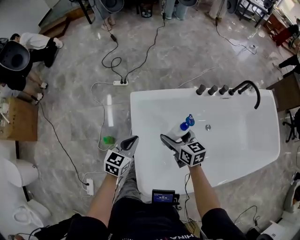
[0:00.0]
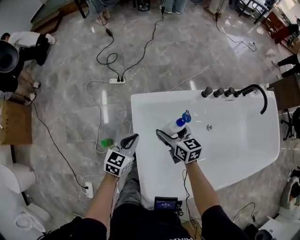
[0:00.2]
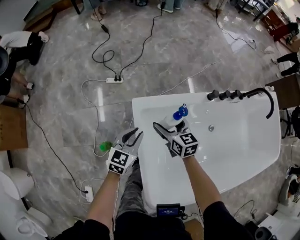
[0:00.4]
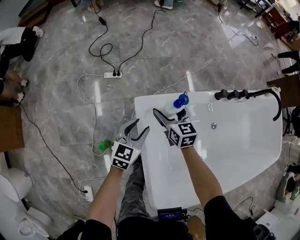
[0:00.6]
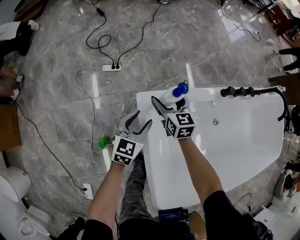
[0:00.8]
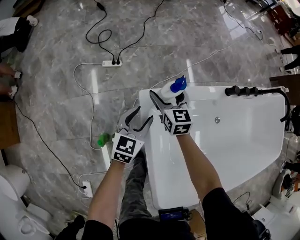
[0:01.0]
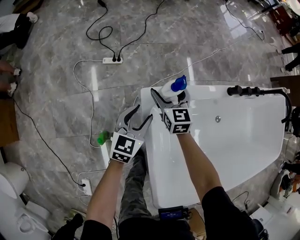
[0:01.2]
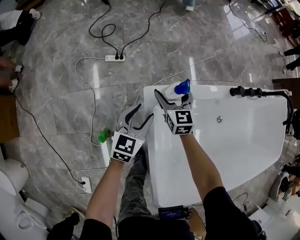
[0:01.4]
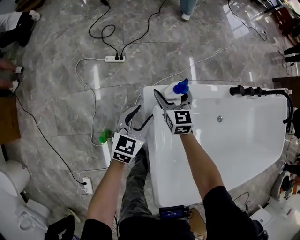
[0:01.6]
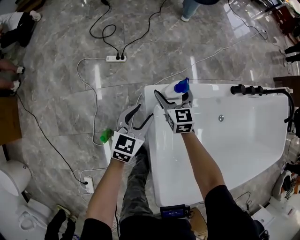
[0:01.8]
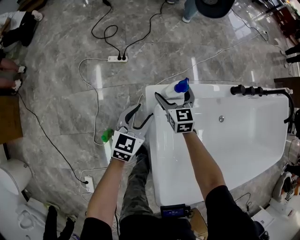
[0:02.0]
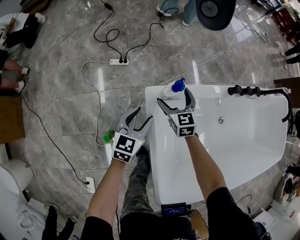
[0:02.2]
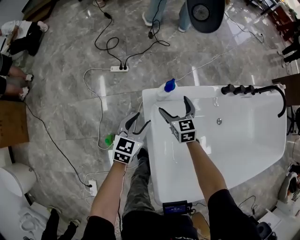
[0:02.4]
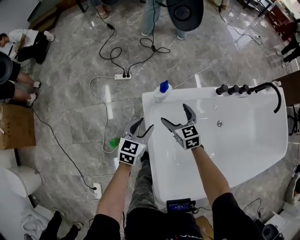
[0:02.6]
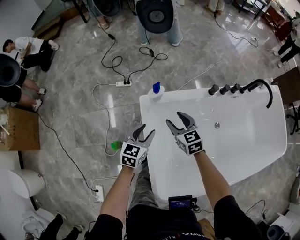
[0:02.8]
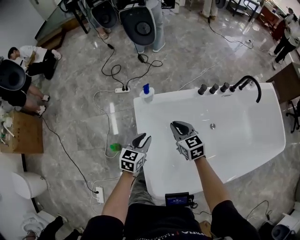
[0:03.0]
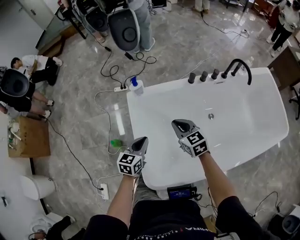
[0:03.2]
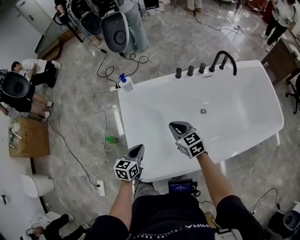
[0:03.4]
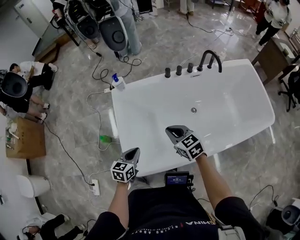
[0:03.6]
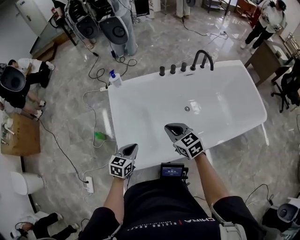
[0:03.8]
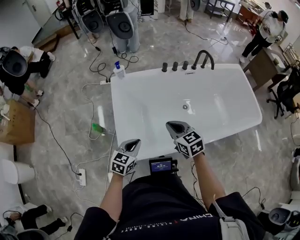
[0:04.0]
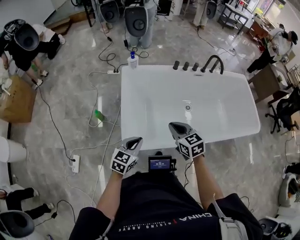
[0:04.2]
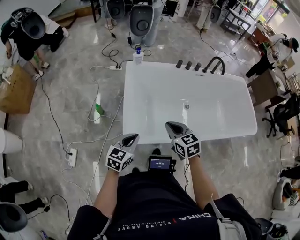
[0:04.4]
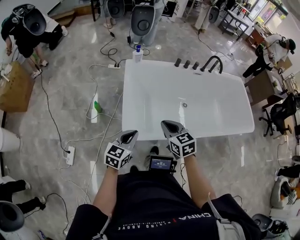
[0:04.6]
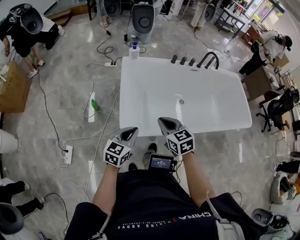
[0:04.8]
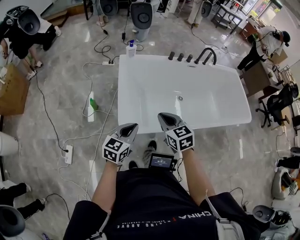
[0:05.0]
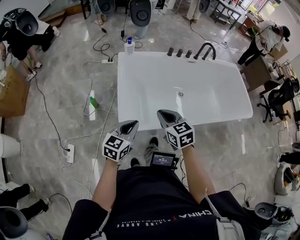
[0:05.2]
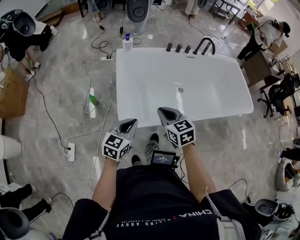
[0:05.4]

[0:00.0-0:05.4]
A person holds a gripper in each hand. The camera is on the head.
0:00.0 to 0:01.4: The two grippers go approximately 35 cm forward, downward and to the left. The right gripper changes its angle by approximately 30 degrees, while the left gripper opens up.
0:01.4 to 0:02.8: Both grippers travel together backward, upward and to the right, some 20 cm. The right gripper closes.
0:02.8 to 0:04.0: Both grippers are carried backward and to the right, roughly 50 cm. The right gripper is displaced upward by about 15 cm, and closes its fingers; the left gripper closes up.
0:04.0 to 0:05.4: The grippers both shift backward and to the left by roughly 15 cm.

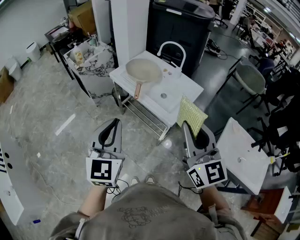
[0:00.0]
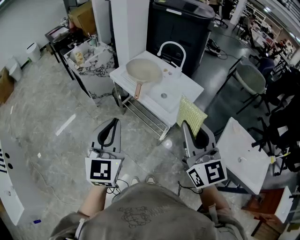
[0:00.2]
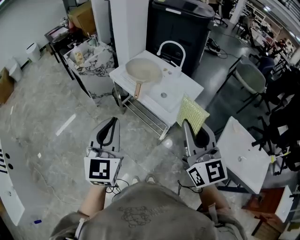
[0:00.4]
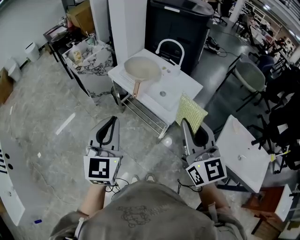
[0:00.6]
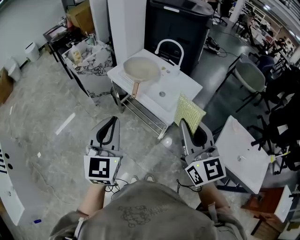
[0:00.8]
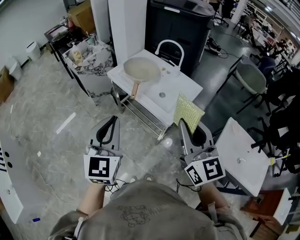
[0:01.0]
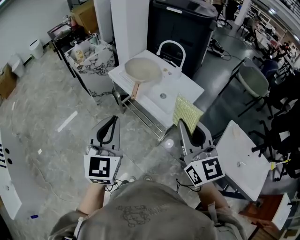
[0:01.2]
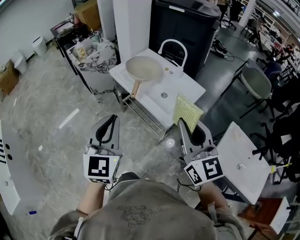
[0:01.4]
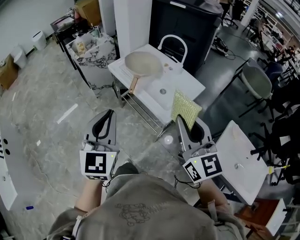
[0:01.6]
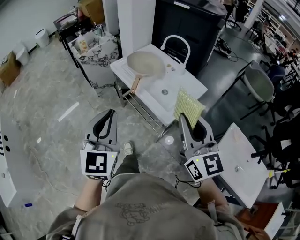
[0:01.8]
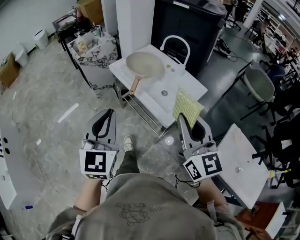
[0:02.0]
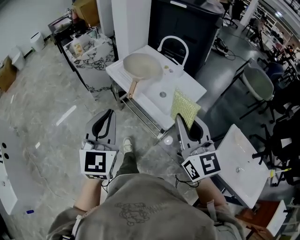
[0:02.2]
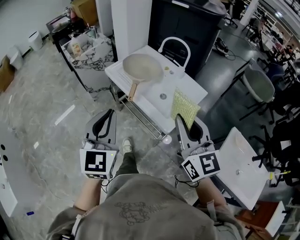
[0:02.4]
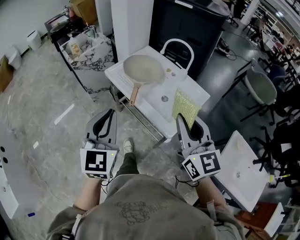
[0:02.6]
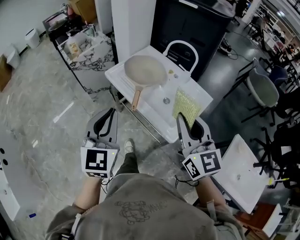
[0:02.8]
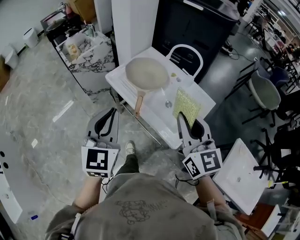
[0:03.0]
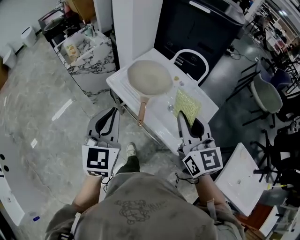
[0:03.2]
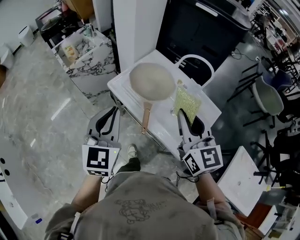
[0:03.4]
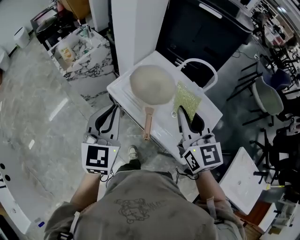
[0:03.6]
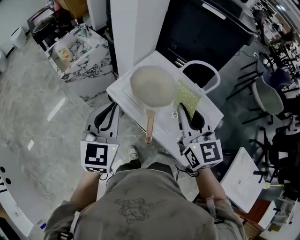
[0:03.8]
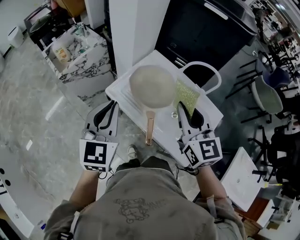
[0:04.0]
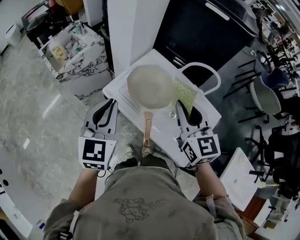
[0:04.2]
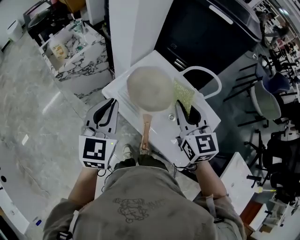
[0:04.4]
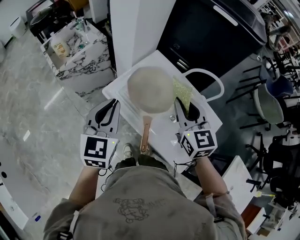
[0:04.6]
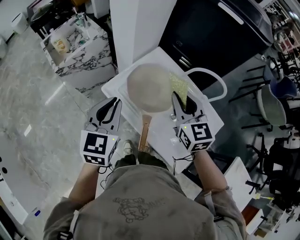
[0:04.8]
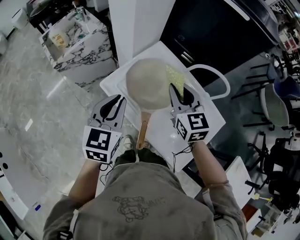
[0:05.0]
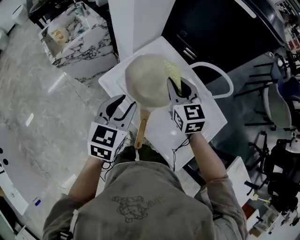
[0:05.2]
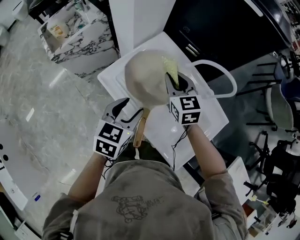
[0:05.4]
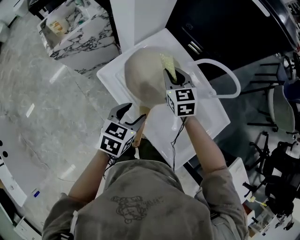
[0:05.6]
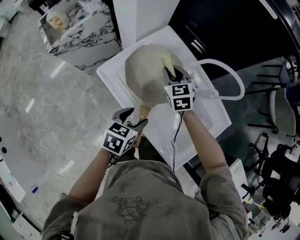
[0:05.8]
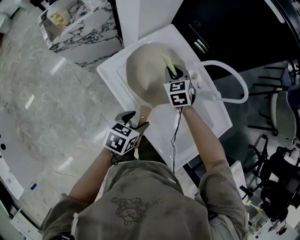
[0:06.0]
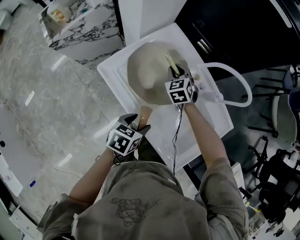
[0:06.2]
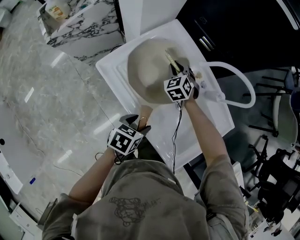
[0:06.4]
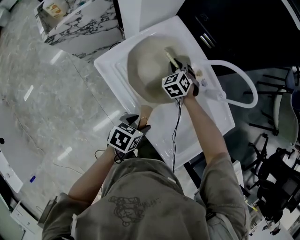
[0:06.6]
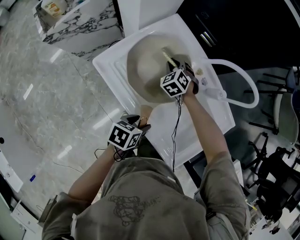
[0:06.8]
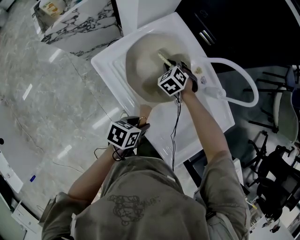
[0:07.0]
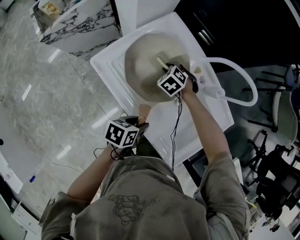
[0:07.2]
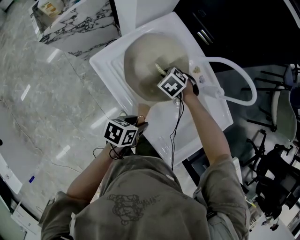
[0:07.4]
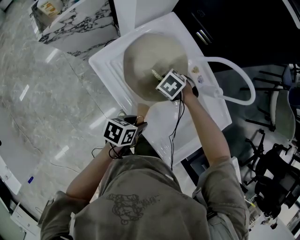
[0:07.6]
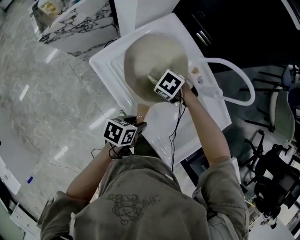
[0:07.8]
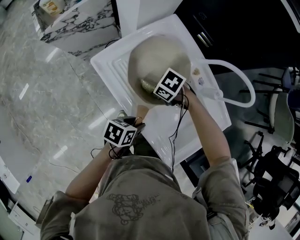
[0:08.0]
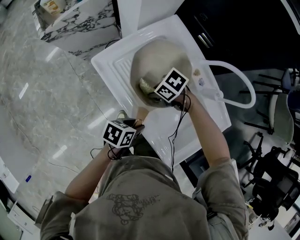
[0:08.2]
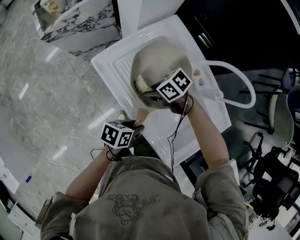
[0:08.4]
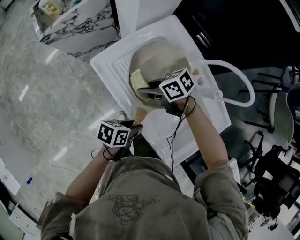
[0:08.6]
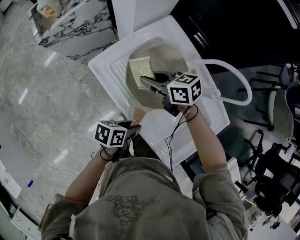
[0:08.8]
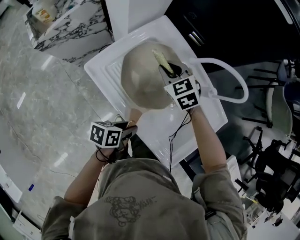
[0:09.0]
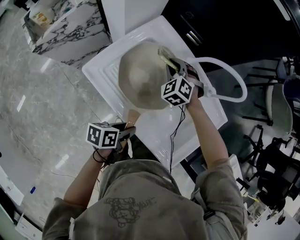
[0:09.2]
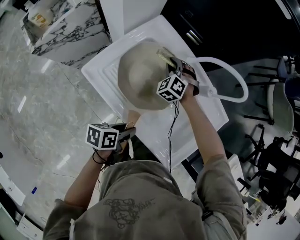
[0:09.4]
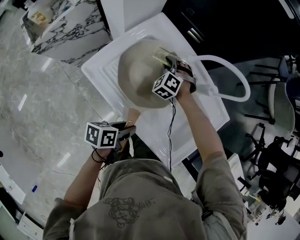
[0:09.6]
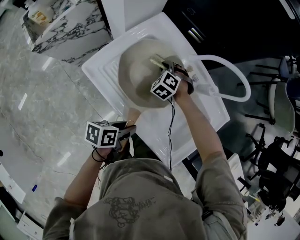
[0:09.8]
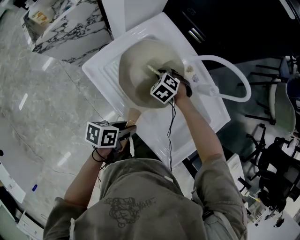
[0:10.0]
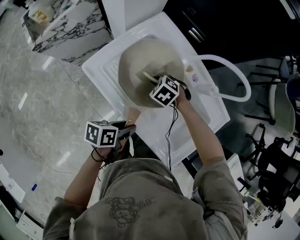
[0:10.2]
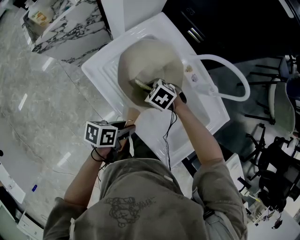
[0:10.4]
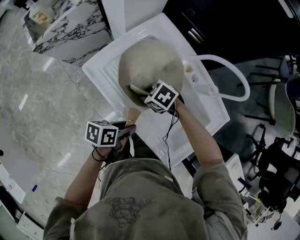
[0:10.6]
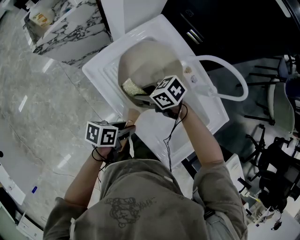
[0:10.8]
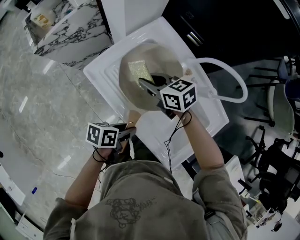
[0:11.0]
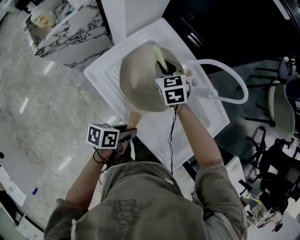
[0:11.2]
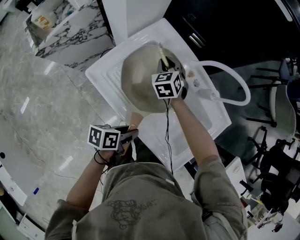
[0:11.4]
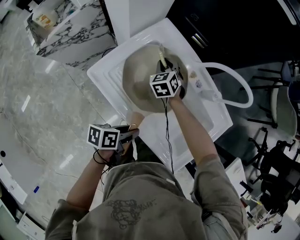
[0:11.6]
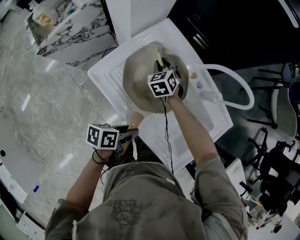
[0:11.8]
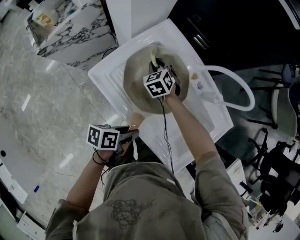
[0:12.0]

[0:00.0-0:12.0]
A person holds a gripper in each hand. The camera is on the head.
0:00.0 to 0:01.6: The left gripper shifts by roughly 5 cm. The right gripper moves about 5 cm.
0:01.6 to 0:03.0: Both grippers move forward, roughly 20 cm.
0:03.0 to 0:04.4: The two grippers go about 25 cm forward.
0:04.4 to 0:06.0: The left gripper travels downward and to the right by some 30 cm, tilts its fingers about 30 degrees downward, and opens; the right gripper goes some 35 cm downward and forward, and swivels some 30 degrees.
0:06.0 to 0:07.6: The left gripper travels downward by approximately 5 cm. Meanwhile the right gripper moves downward, about 10 cm, and points its fingers about 40 degrees further downward.
0:07.6 to 0:09.0: The right gripper is displaced upward by roughly 15 cm, and angles its fingers upward, by about 40 degrees.
0:09.0 to 0:10.4: The right gripper is displaced downward by approximately 10 cm, and turns by some 40 degrees.
0:10.4 to 0:12.0: The right gripper moves about 10 cm upward and comes back, and changes its angle by approximately 40 degrees.

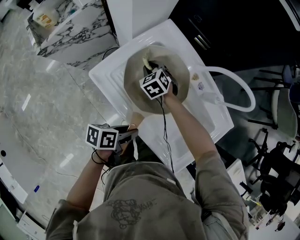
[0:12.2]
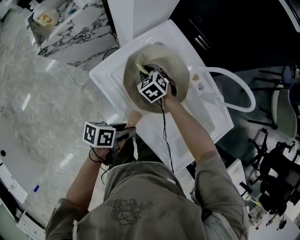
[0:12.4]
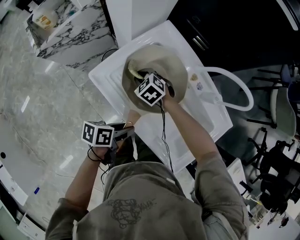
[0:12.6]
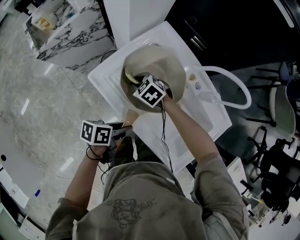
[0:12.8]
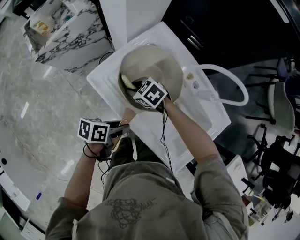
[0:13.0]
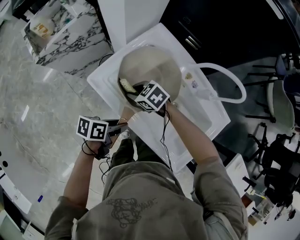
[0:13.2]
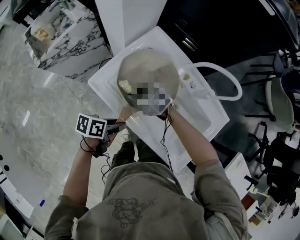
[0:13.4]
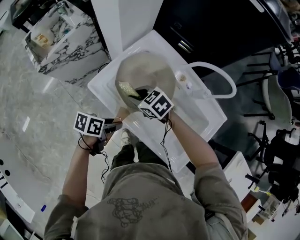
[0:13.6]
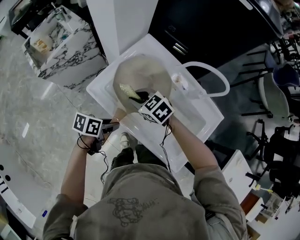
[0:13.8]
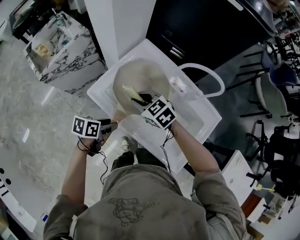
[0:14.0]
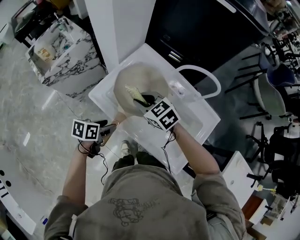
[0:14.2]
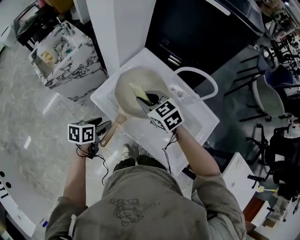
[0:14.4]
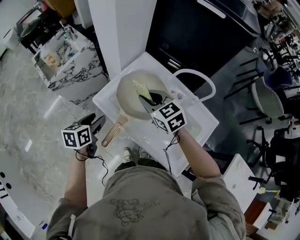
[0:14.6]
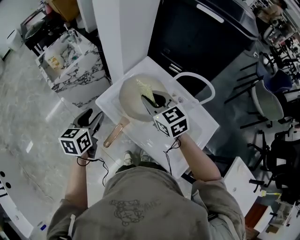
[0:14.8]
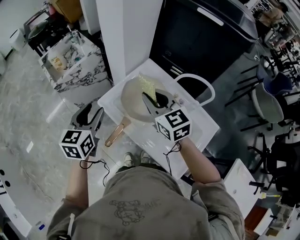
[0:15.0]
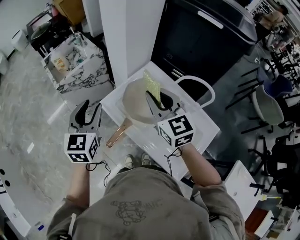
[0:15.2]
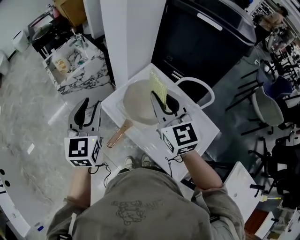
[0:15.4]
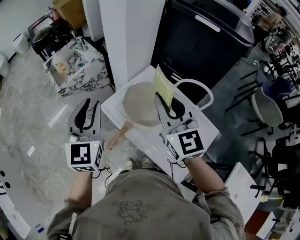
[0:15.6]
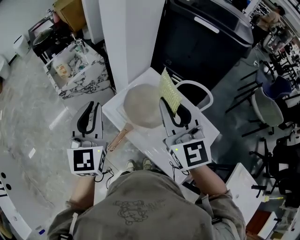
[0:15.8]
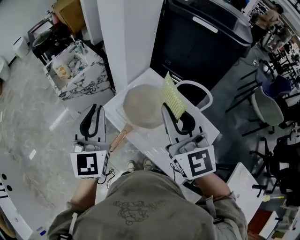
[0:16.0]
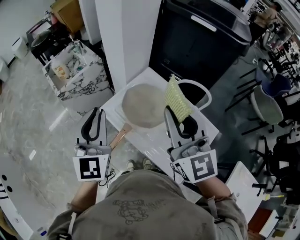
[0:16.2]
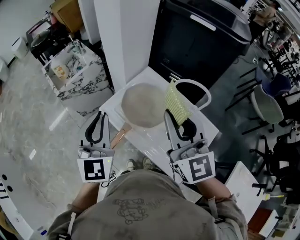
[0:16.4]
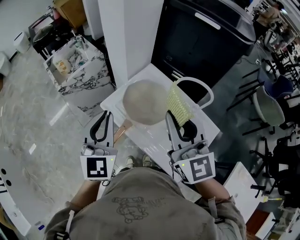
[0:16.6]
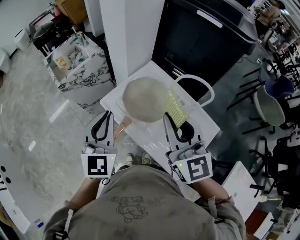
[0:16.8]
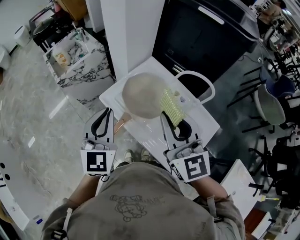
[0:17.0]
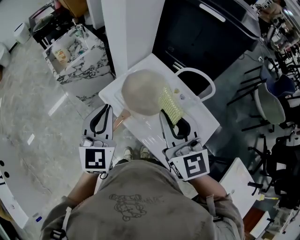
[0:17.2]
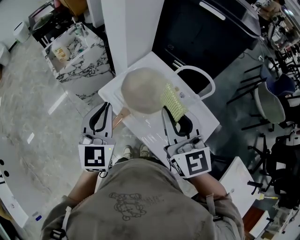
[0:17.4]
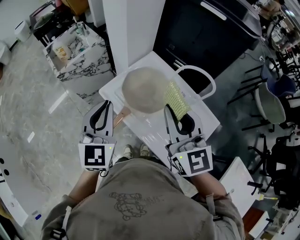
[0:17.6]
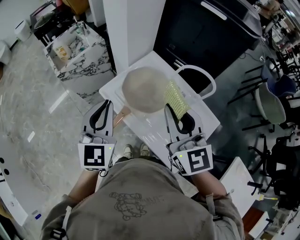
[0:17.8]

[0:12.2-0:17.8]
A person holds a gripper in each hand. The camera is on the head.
0:12.2 to 0:13.6: The left gripper moves about 5 cm; the right gripper changes place by about 15 cm, and rotates approximately 30 degrees.
0:13.6 to 0:15.0: The grippers both shift upward by about 25 cm. The left gripper changes its angle by roughly 60 degrees. Meanwhile the right gripper turns by roughly 40 degrees.
0:15.0 to 0:16.4: The grippers both shift upward and backward by approximately 15 cm. The left gripper turns by roughly 30 degrees, and closes its fingers; the right gripper swivels about 30 degrees.
0:16.4 to 0:17.8: The right gripper is displaced downward by approximately 5 cm.
